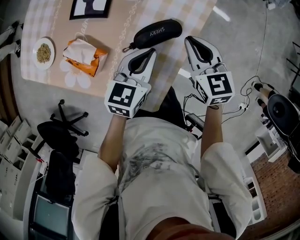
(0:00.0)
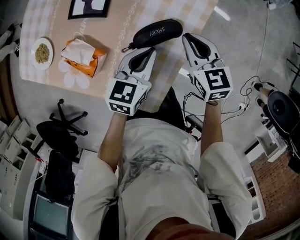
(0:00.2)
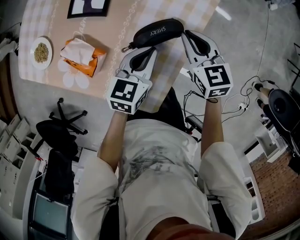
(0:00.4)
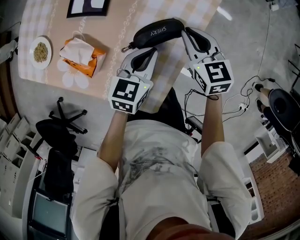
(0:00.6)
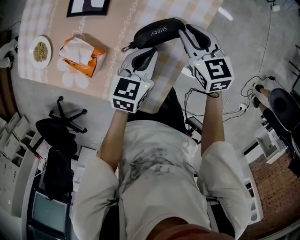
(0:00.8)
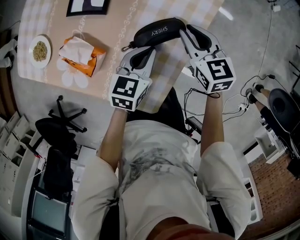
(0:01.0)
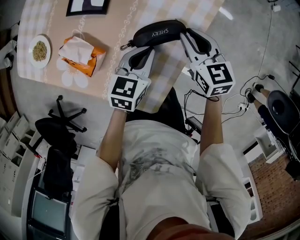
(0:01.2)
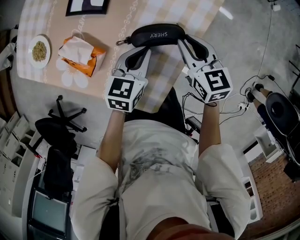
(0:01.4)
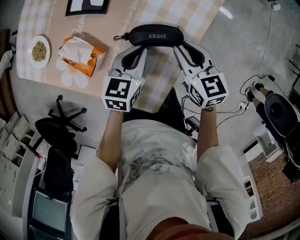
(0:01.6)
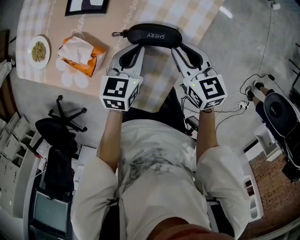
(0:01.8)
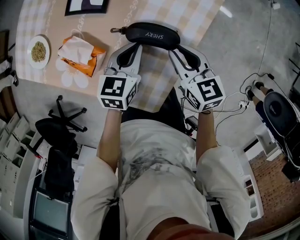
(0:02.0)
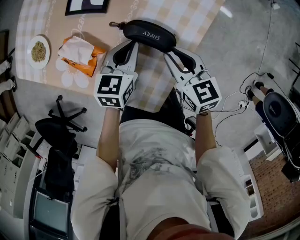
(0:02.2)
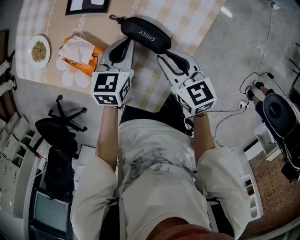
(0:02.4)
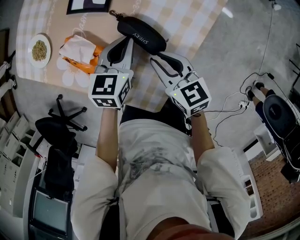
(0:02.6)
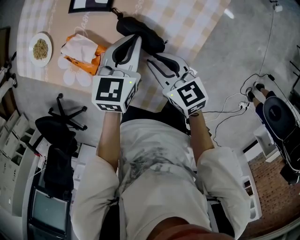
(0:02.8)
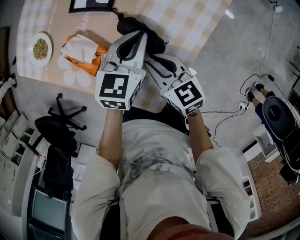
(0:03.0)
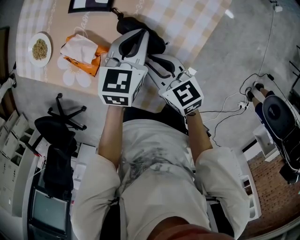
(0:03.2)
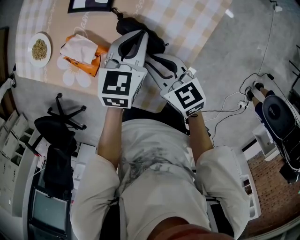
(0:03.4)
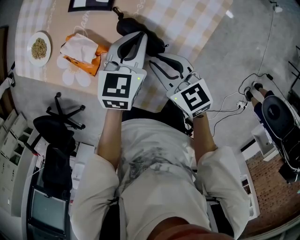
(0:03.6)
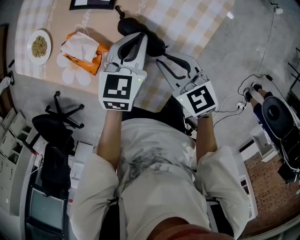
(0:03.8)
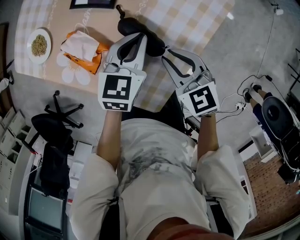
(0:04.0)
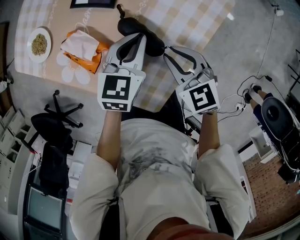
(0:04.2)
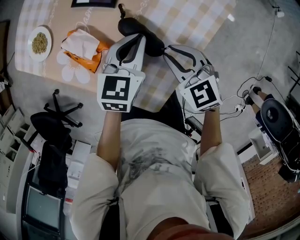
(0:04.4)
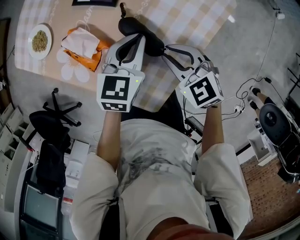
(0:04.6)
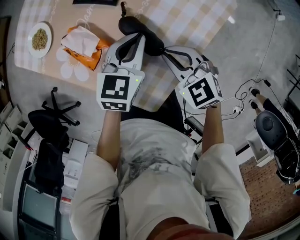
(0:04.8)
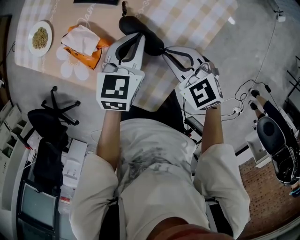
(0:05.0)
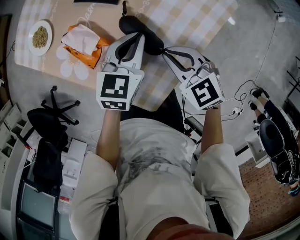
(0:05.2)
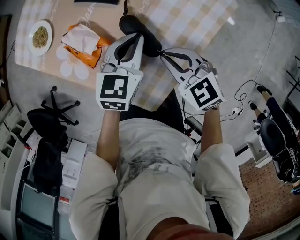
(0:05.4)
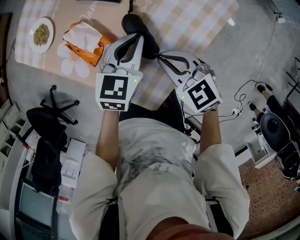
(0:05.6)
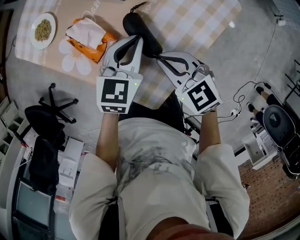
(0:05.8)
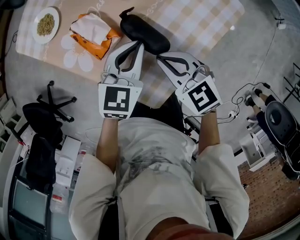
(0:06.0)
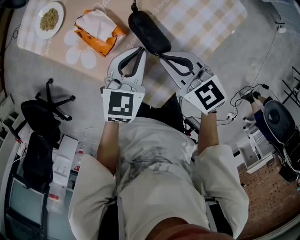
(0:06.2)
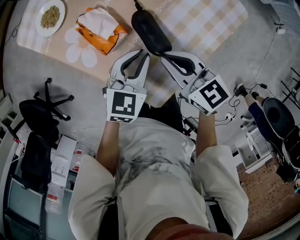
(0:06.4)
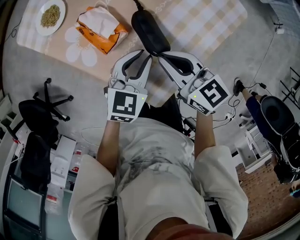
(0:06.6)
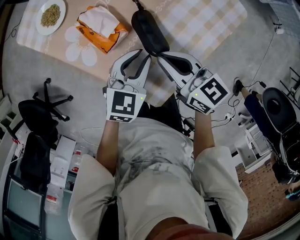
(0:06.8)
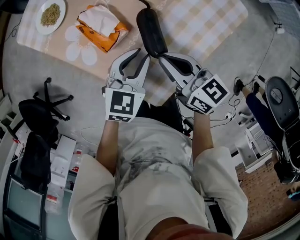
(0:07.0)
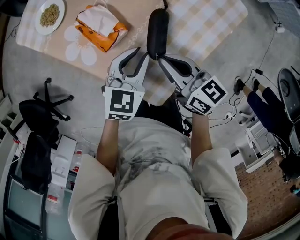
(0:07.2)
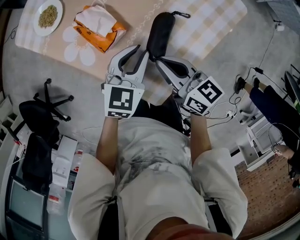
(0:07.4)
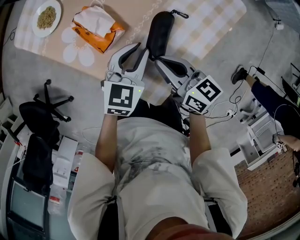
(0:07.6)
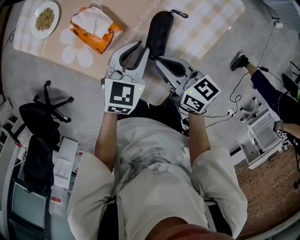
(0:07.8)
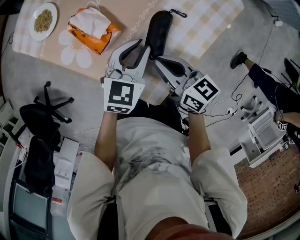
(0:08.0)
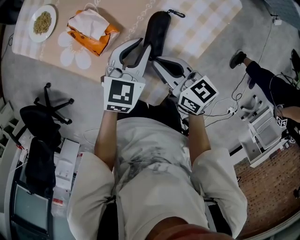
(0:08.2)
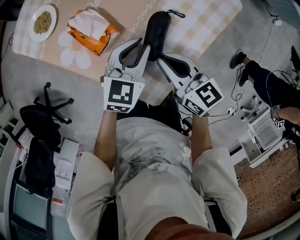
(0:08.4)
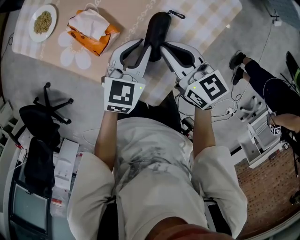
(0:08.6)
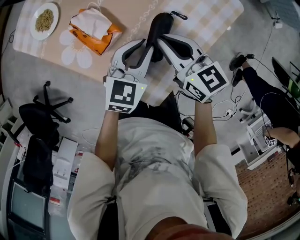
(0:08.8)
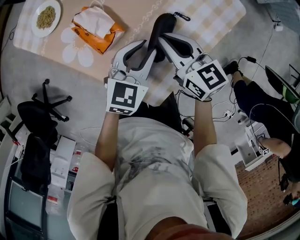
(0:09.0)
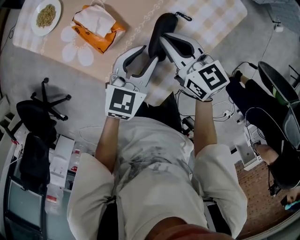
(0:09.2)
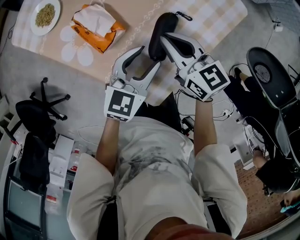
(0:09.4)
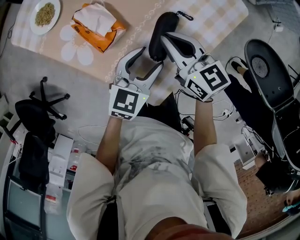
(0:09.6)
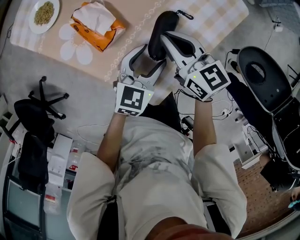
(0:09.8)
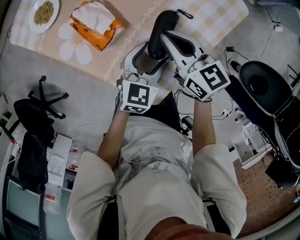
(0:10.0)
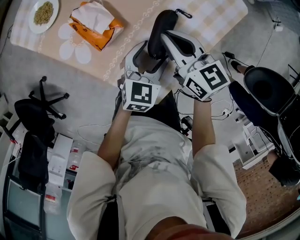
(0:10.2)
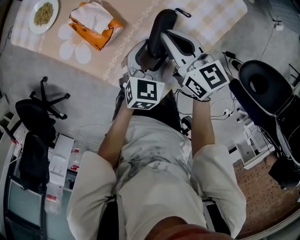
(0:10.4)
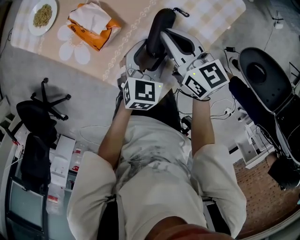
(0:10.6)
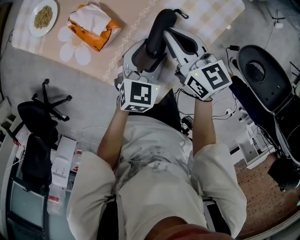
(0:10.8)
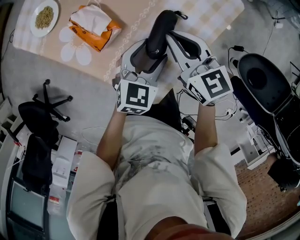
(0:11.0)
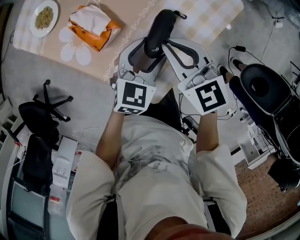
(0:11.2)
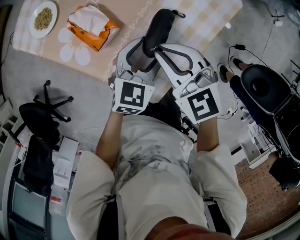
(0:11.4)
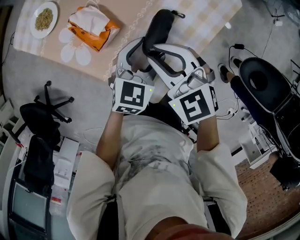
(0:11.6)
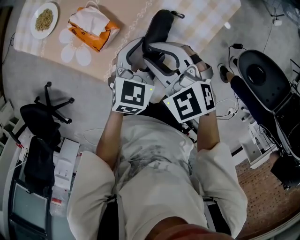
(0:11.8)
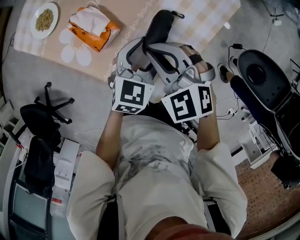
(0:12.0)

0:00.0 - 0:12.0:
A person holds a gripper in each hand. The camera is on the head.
0:00.0 - 0:01.6: The right gripper ends up some 5 cm from where it was; the left gripper goes about 5 cm downward.
0:01.6 - 0:03.0: The left gripper moves forward, about 5 cm. Meanwhile the right gripper goes approximately 10 cm to the left.
0:03.0 - 0:04.4: The right gripper turns by some 30 degrees.
0:04.4 - 0:06.0: The right gripper travels to the left by roughly 5 cm; the left gripper changes place by approximately 5 cm.
0:06.0 - 0:07.6: The right gripper rotates approximately 40 degrees.
0:07.6 - 0:09.0: The right gripper heads forward, covering some 5 cm.
0:09.0 - 0:10.4: The left gripper travels downward by about 5 cm, and opens its fingers.
0:10.4 - 0:12.0: The right gripper ends up roughly 5 cm from where it was, rotates around the line of its fingers by some 50 degrees, counterclockwise from behind, and opens and closes again. Meanwhile the left gripper goes roughly 5 cm upward.

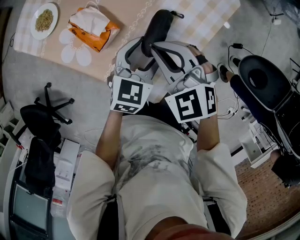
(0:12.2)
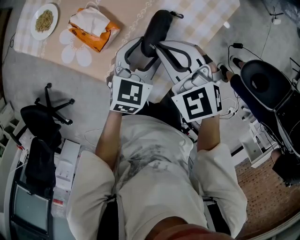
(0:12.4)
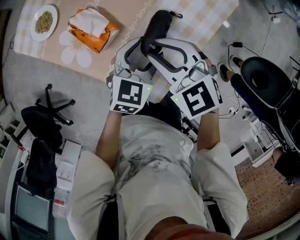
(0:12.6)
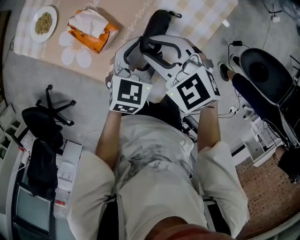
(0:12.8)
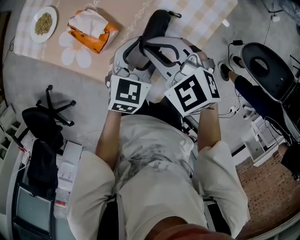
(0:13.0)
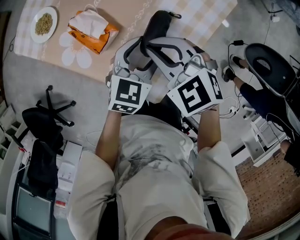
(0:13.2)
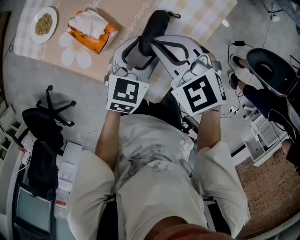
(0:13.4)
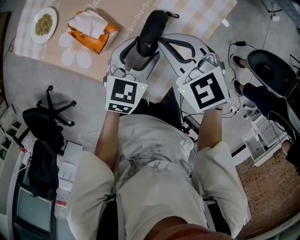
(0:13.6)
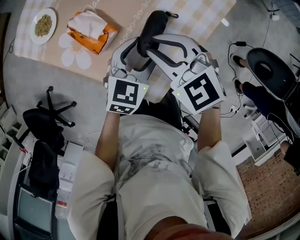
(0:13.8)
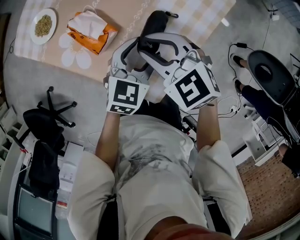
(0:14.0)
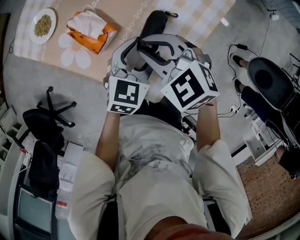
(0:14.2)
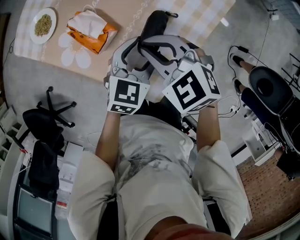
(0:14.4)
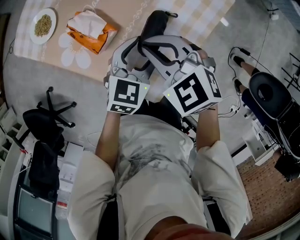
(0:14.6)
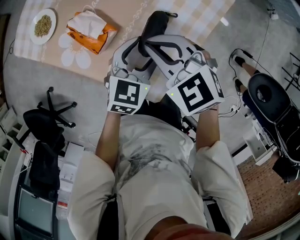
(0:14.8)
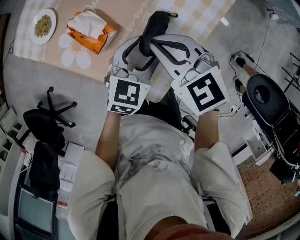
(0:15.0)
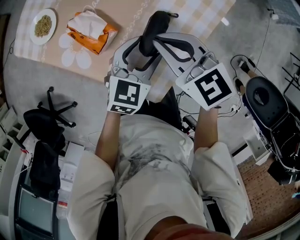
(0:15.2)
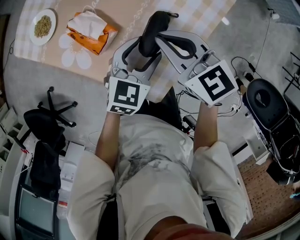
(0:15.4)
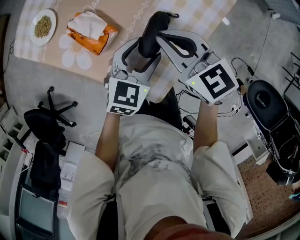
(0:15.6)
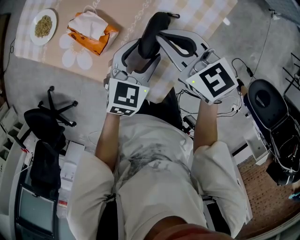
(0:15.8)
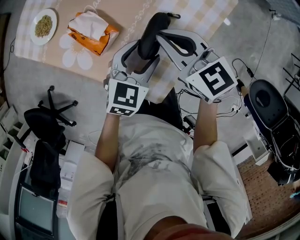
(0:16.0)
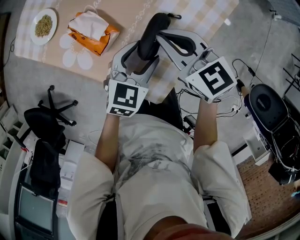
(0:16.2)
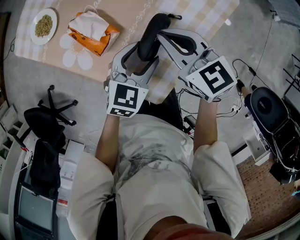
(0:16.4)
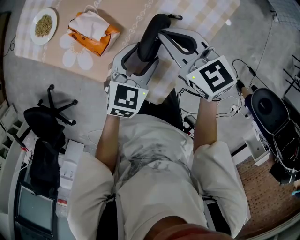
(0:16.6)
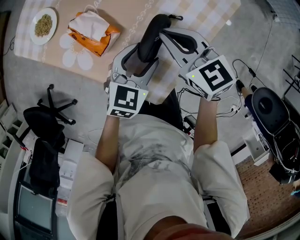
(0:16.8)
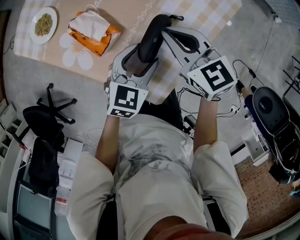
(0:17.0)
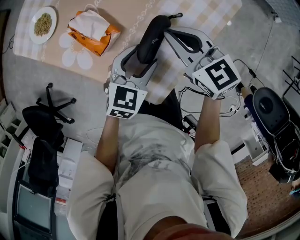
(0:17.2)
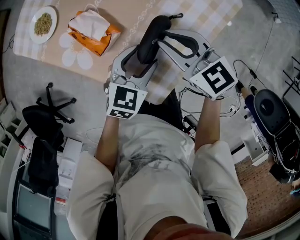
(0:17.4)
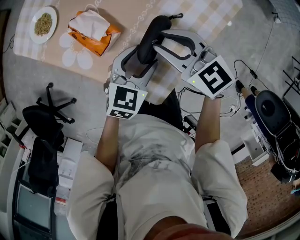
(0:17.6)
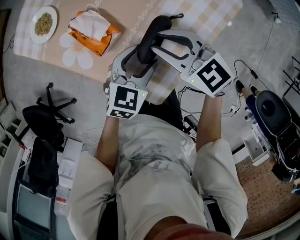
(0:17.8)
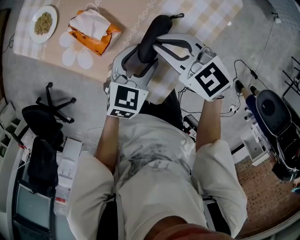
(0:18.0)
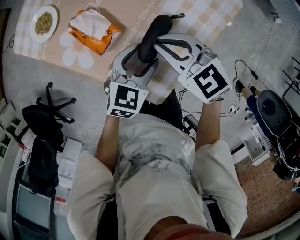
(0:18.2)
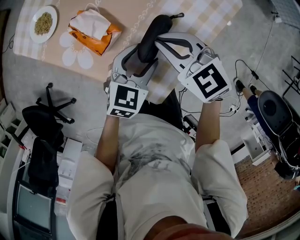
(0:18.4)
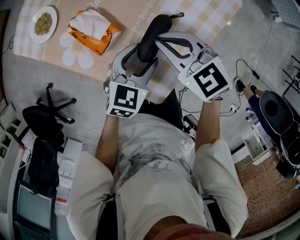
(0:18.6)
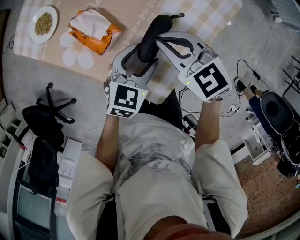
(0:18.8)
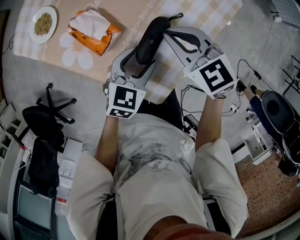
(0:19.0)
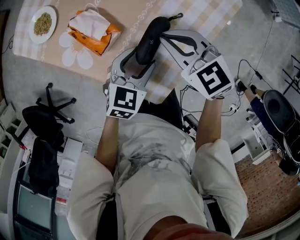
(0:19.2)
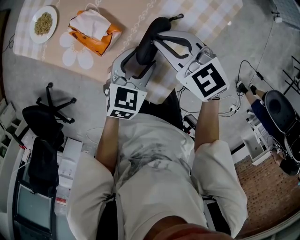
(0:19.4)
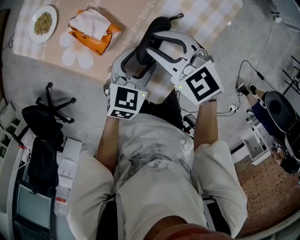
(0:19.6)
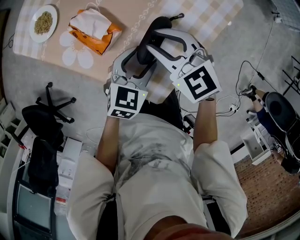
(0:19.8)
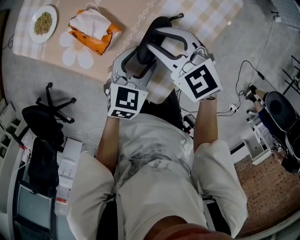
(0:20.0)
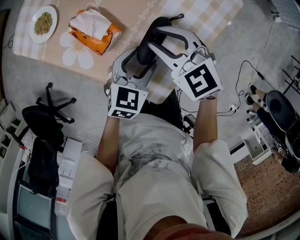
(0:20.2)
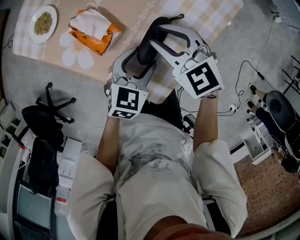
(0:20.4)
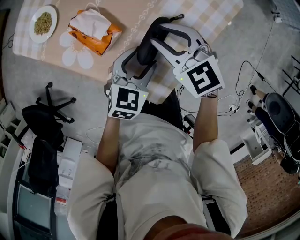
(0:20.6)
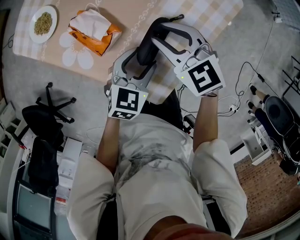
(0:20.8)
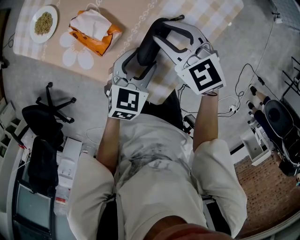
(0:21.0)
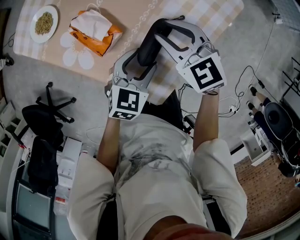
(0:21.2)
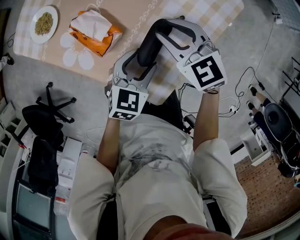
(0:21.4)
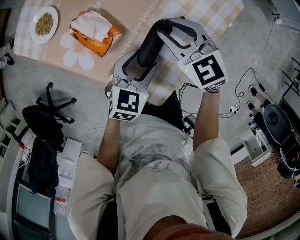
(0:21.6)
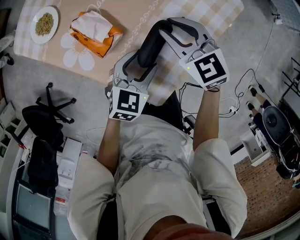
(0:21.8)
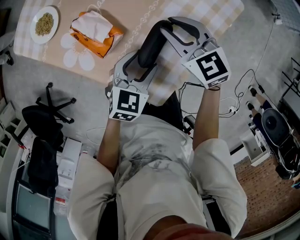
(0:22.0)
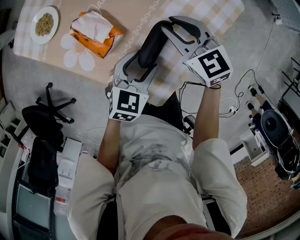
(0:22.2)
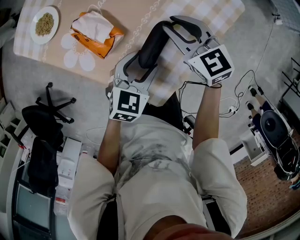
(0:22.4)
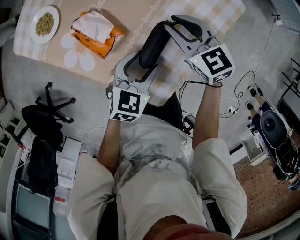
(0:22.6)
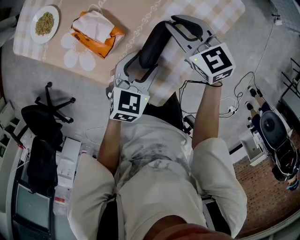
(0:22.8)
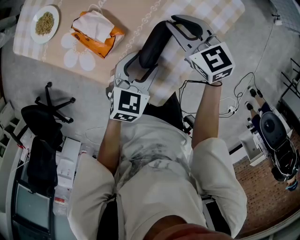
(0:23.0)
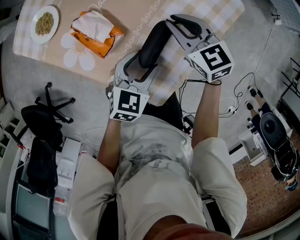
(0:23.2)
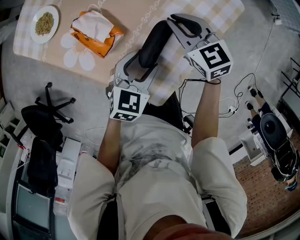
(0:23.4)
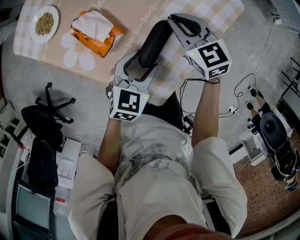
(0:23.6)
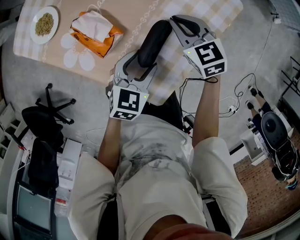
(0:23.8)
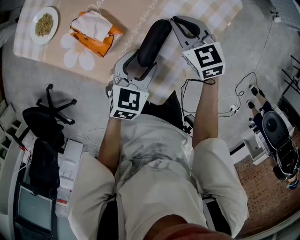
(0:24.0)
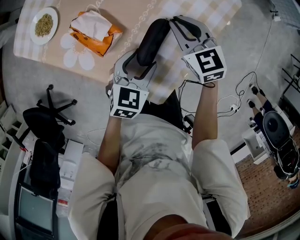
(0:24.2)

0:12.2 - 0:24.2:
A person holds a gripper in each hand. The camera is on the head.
0:12.2 - 0:13.8: There are only small adjustments of the grippers.
0:13.8 - 0:15.2: The grippers make only small movements.
0:15.2 - 0:16.6: The grippers move only a little.
0:16.6 - 0:18.2: The right gripper opens, then closes again.
0:18.2 - 0:19.8: The right gripper opens.
0:19.8 - 0:21.2: The grippers move only a little.
0:21.2 - 0:22.6: The grippers stay close to where they were, moving slightly.
0:22.6 - 0:24.2: The grippers move only a little.
